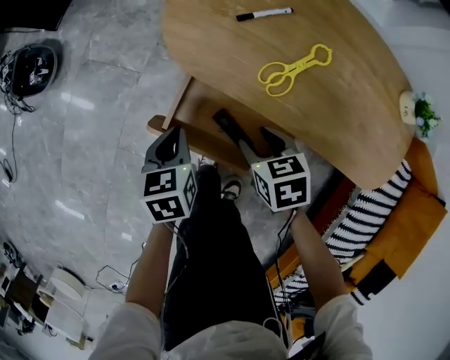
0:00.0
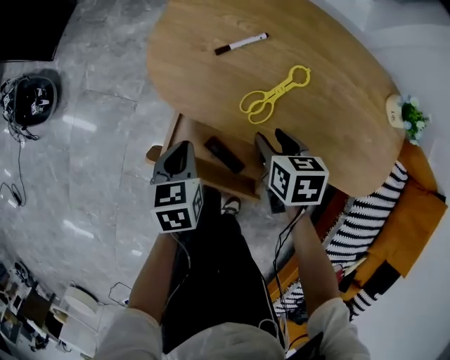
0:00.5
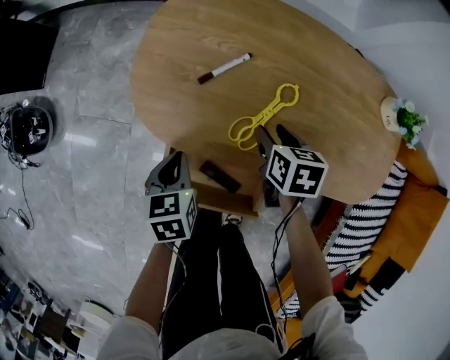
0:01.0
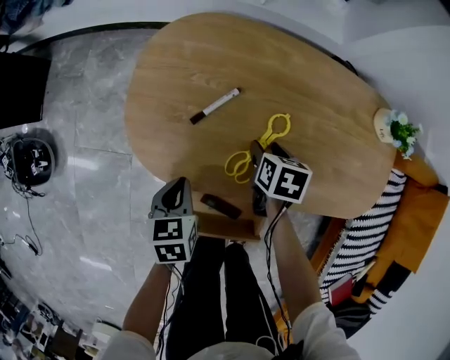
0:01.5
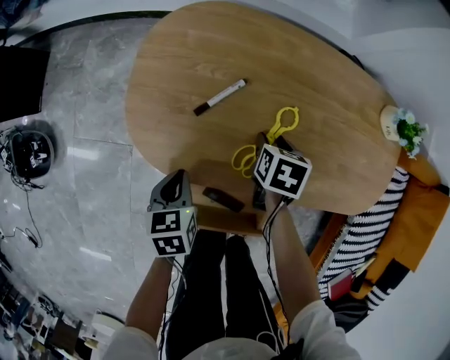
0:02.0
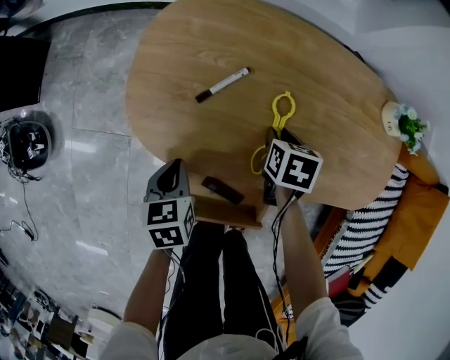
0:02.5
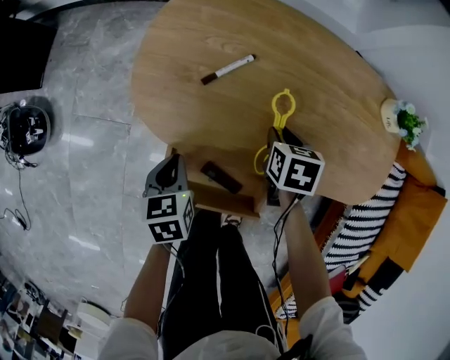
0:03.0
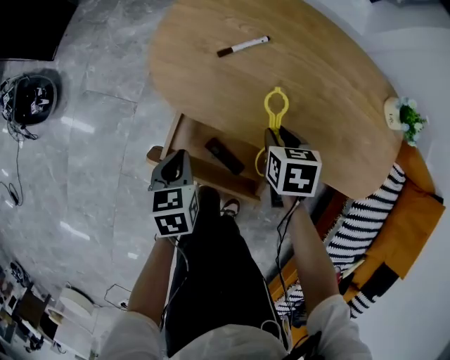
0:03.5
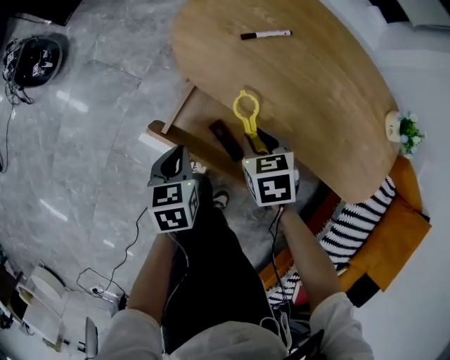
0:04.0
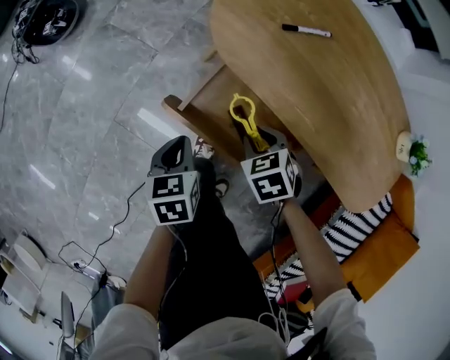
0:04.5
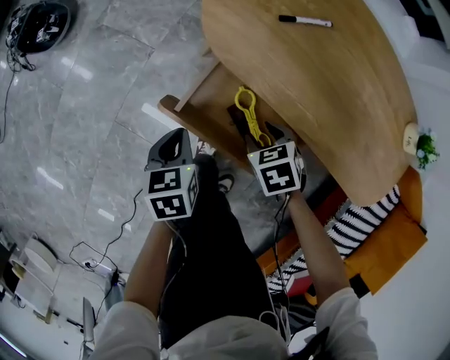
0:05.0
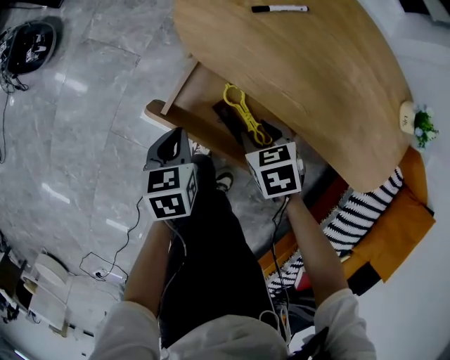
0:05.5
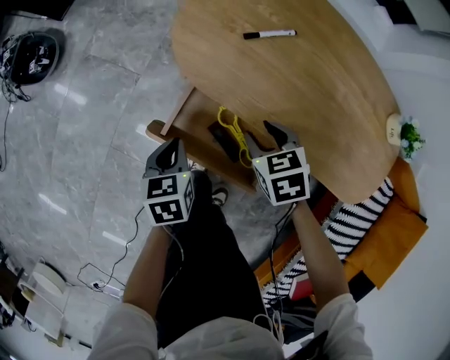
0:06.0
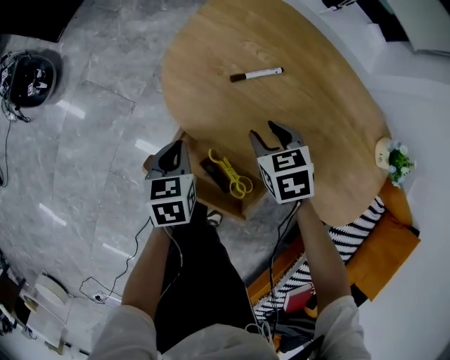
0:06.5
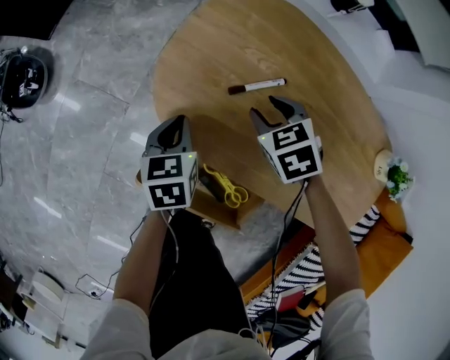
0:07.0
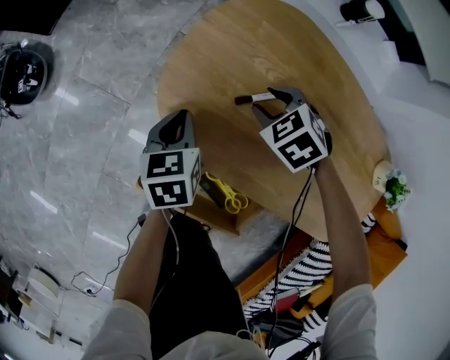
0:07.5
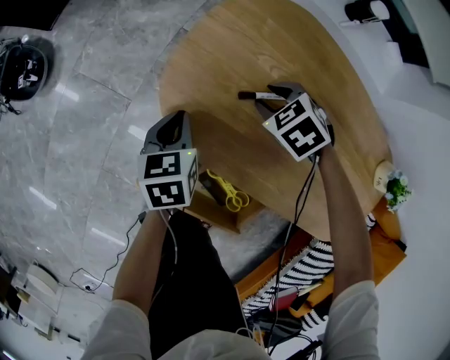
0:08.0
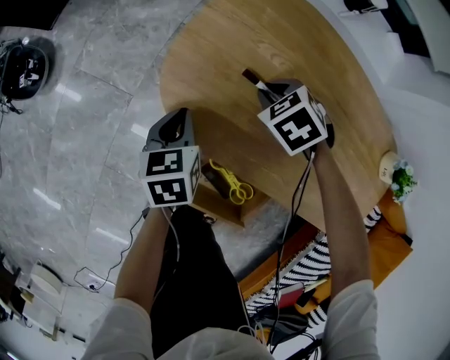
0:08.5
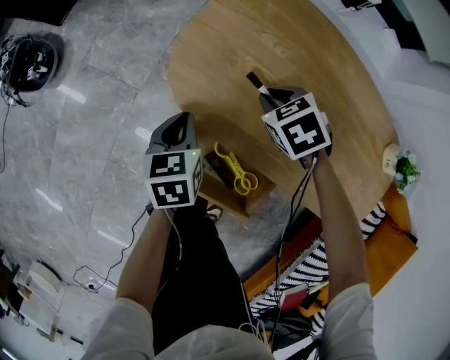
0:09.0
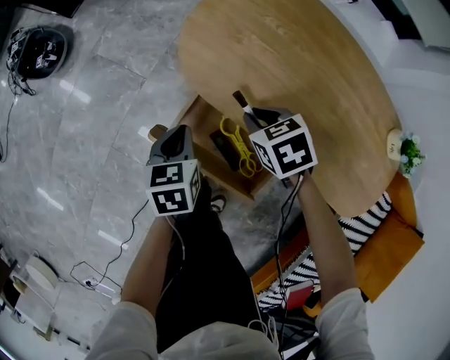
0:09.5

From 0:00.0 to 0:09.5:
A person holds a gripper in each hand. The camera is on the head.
From 0:00.0 to 0:02.0: The left gripper moves roughly 15 cm, while the right gripper ends up about 25 cm from where it was, and changes its angle by some 50 degrees.
From 0:02.0 to 0:04.0: The right gripper shifts by roughly 20 cm, and rolls counterclockwise, seen from behind, by some 50 degrees; the left gripper ends up some 20 cm from where it was, and turns by about 20 degrees.
From 0:04.0 to 0:05.5: The right gripper changes place by some 5 cm.
From 0:05.5 to 0:07.5: Both grippers move forward, approximately 30 cm. The right gripper turns by roughly 30 degrees.
From 0:07.5 to 0:09.5: The right gripper ends up roughly 20 cm from where it was, changes its angle by some 20 degrees, and closes its fingers, while the left gripper ends up approximately 20 cm from where it was.

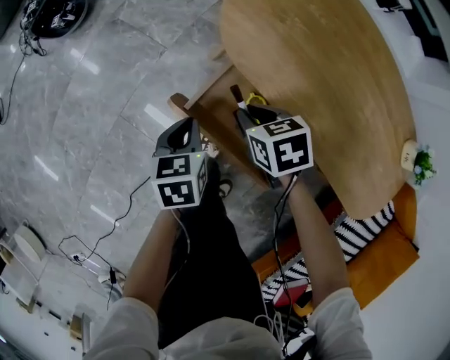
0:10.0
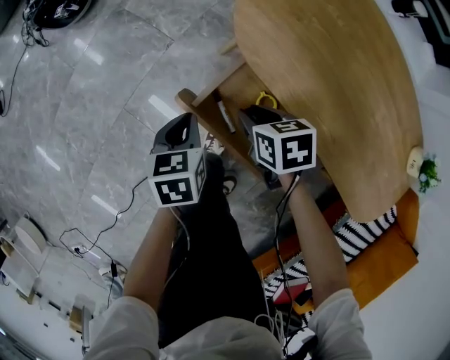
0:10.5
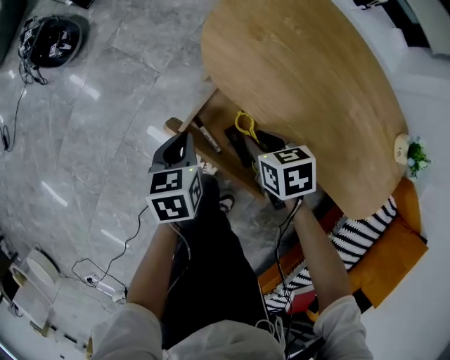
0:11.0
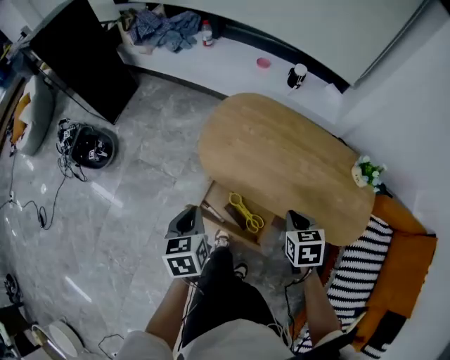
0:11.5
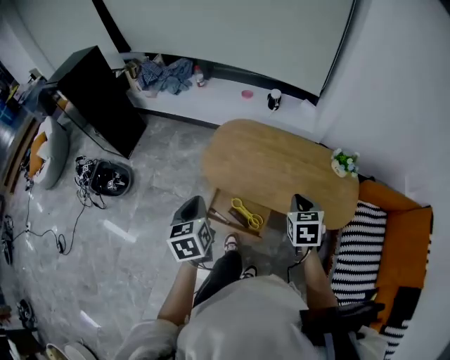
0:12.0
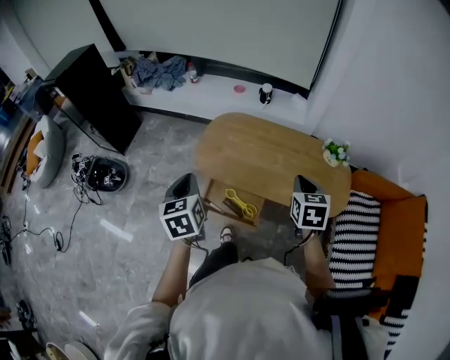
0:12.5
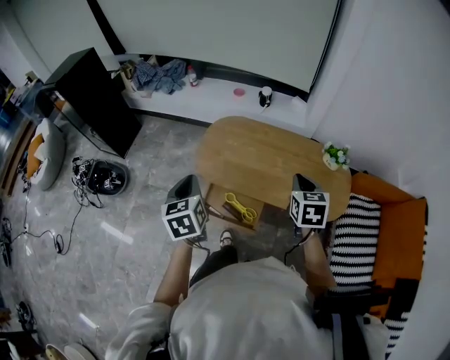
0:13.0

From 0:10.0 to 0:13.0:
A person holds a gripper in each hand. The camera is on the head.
From 0:10.0 to 0:11.5: The grippers both shift upward by about 30 cm. The right gripper rotates about 40 degrees.
From 0:11.5 to 0:13.0: Both grippers travel together upward, about 25 cm. The right gripper swivels roughly 20 degrees.

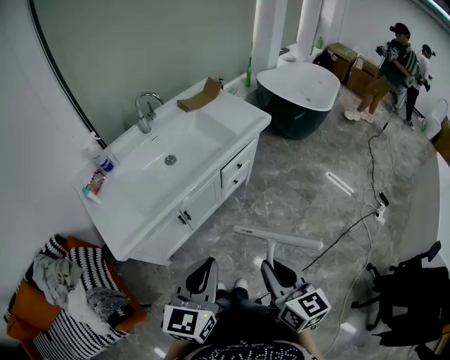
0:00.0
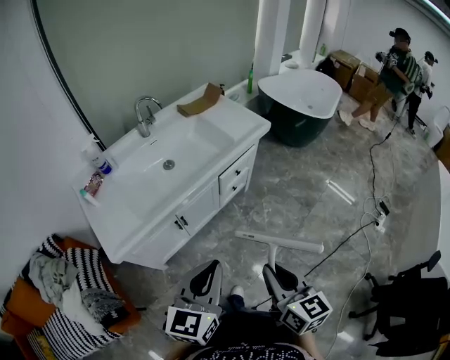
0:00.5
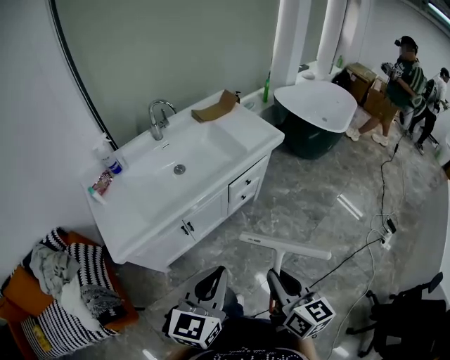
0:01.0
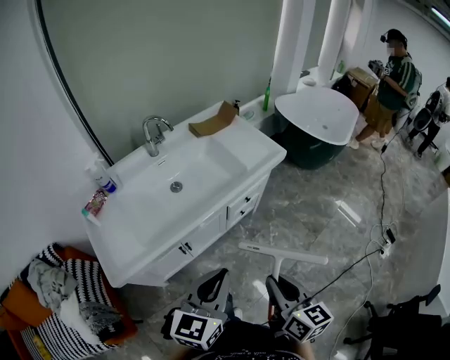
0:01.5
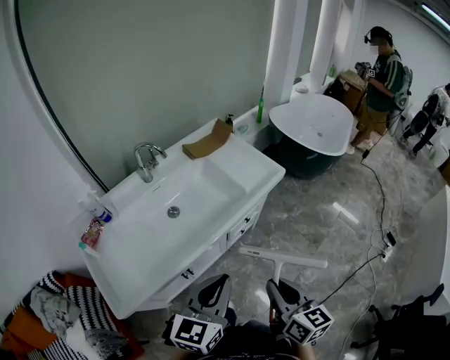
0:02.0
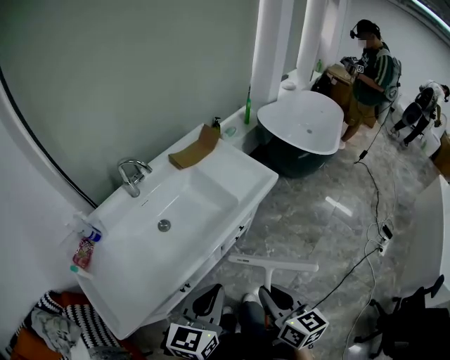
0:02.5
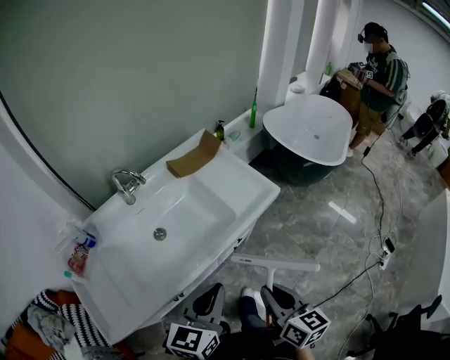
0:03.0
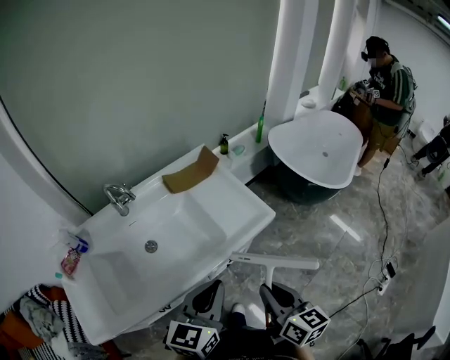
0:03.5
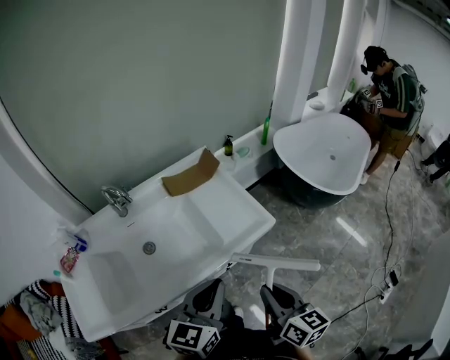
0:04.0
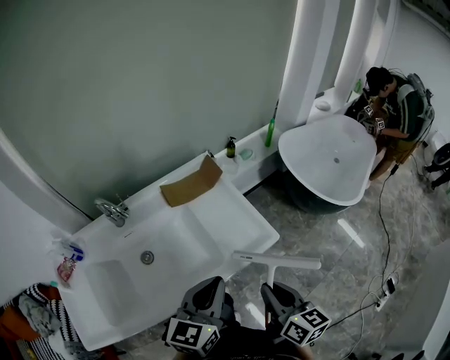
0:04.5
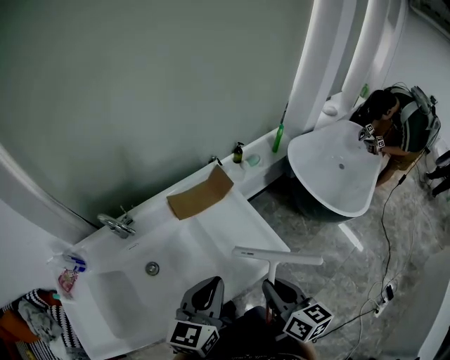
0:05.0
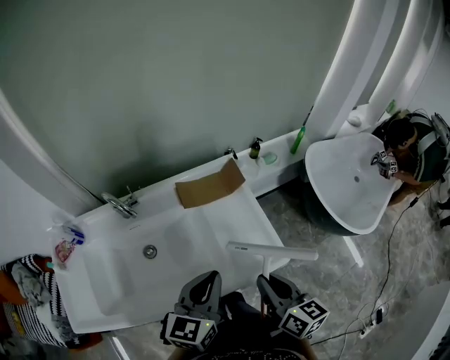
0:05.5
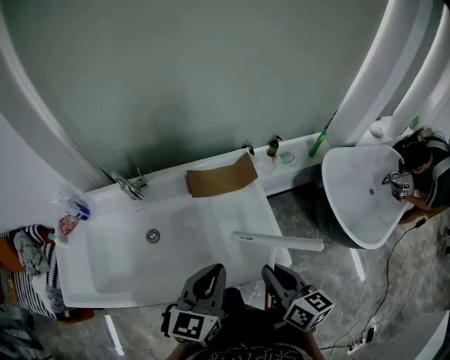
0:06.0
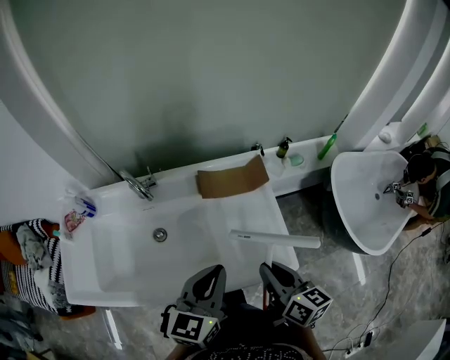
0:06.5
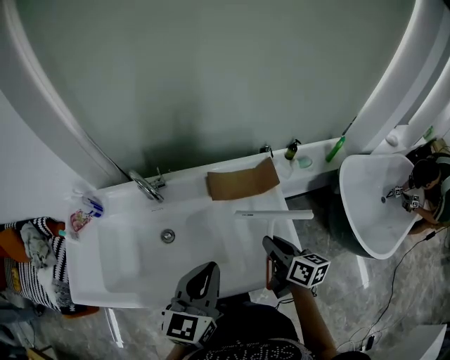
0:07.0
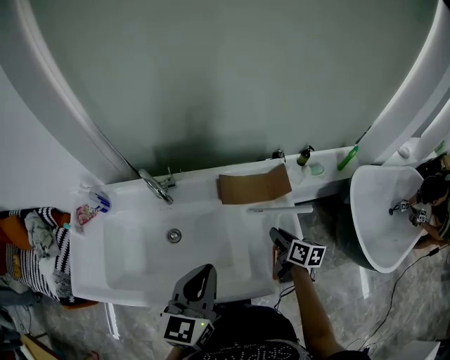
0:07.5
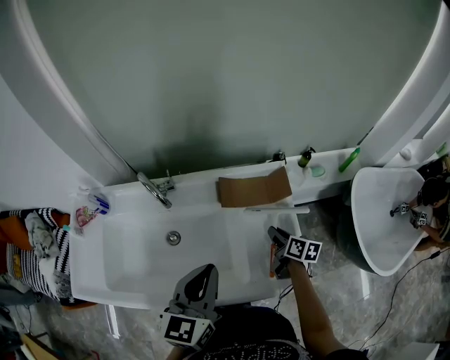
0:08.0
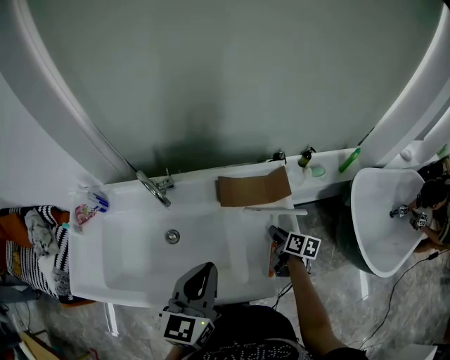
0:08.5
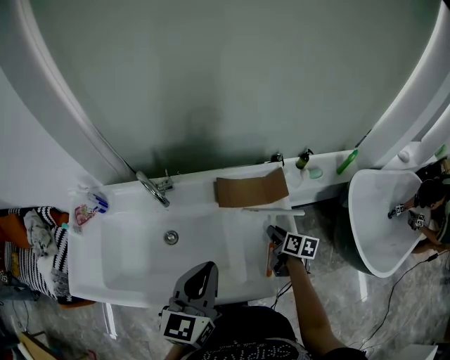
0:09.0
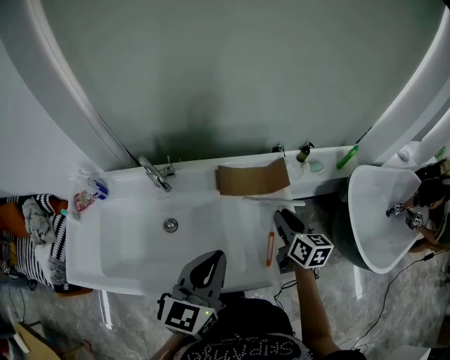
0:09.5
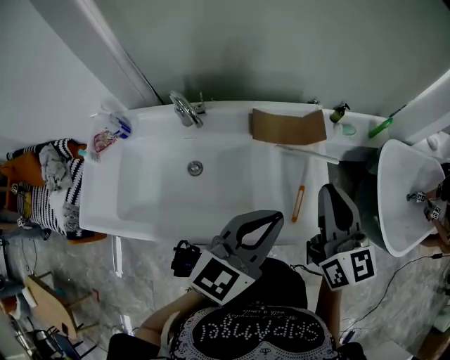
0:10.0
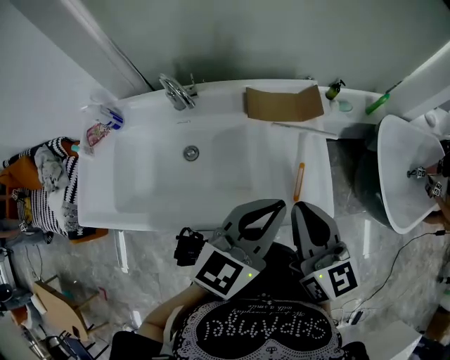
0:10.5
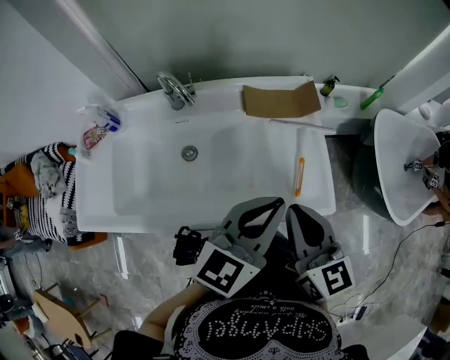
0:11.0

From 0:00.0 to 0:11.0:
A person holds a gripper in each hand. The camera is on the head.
From 0:00.0 to 0:02.0: The grippers both shift forward by roughly 20 cm.
From 0:02.0 to 0:03.5: The two grippers go roughly 20 cm forward and to the right.
From 0:03.5 to 0:05.5: Both grippers move forward, roughly 20 cm.
From 0:05.5 to 0:07.5: The right gripper shifts approximately 25 cm forward and downward, and changes its angle by approximately 20 degrees. Meanwhile the left gripper travels to the left by some 5 cm.
From 0:07.5 to 0:09.0: The right gripper shifts by approximately 5 cm.
From 0:09.0 to 0:11.0: The right gripper moves upward, backward and to the left, roughly 35 cm, and swivels about 40 degrees, while the left gripper goes roughly 10 cm to the right and backward, and rotates about 20 degrees.

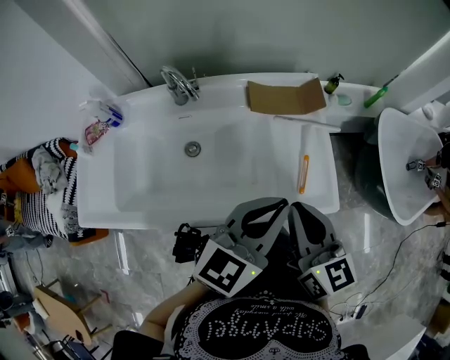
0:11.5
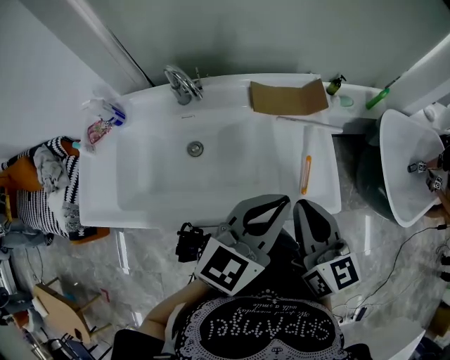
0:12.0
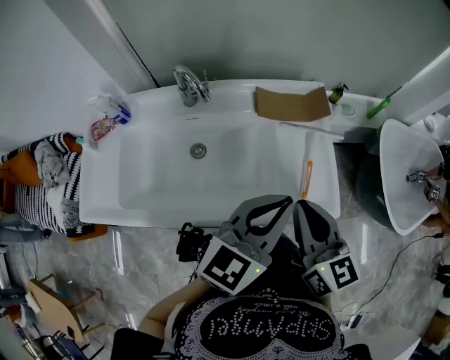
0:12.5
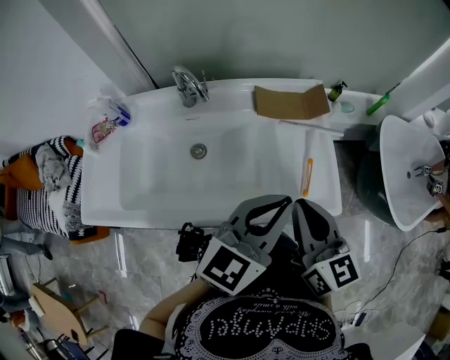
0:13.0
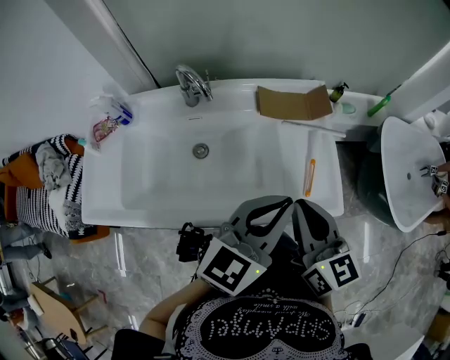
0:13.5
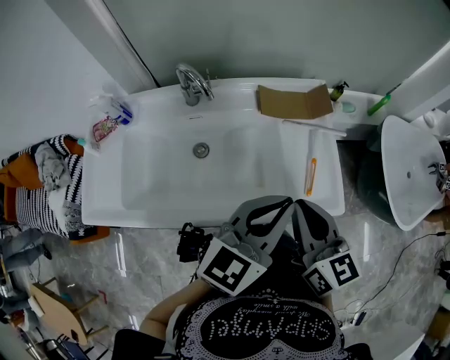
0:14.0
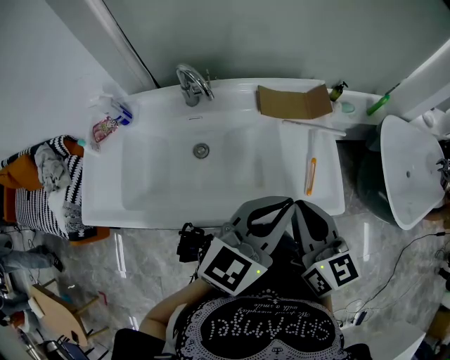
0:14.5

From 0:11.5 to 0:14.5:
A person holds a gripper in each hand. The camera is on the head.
From 0:11.5 to 0:13.0: Neither gripper changes place.
From 0:13.0 to 0:14.5: The grippers move only a little.
